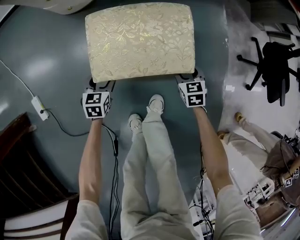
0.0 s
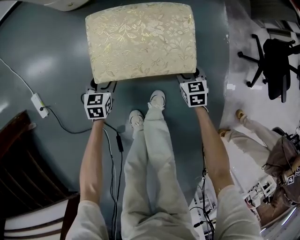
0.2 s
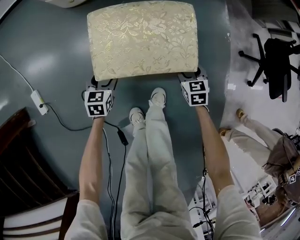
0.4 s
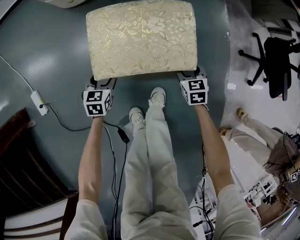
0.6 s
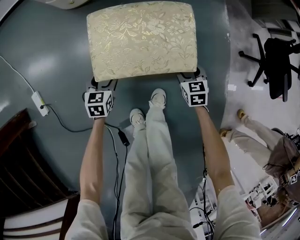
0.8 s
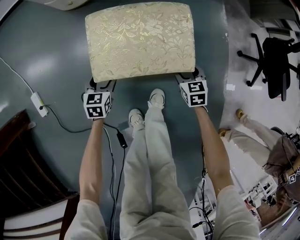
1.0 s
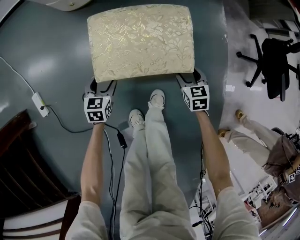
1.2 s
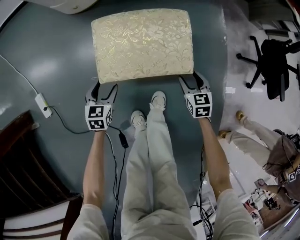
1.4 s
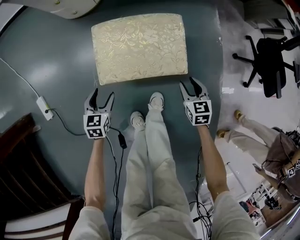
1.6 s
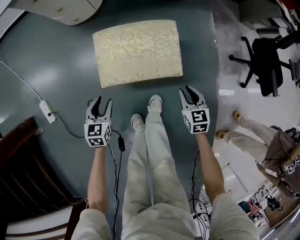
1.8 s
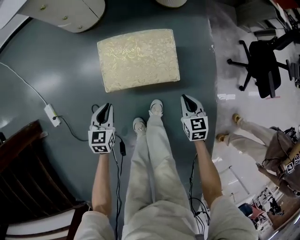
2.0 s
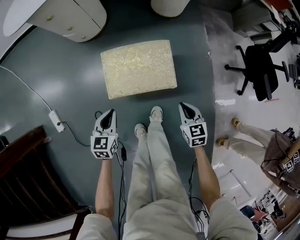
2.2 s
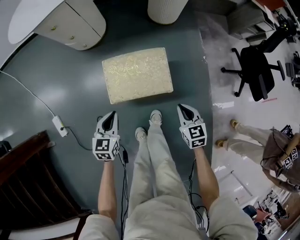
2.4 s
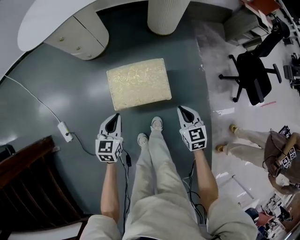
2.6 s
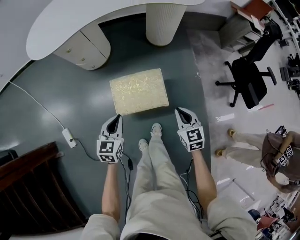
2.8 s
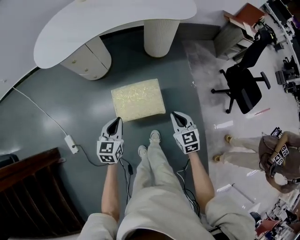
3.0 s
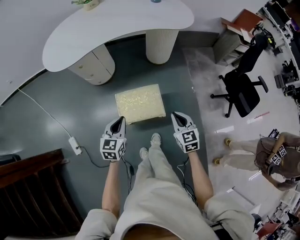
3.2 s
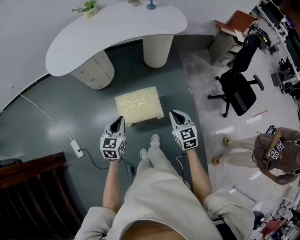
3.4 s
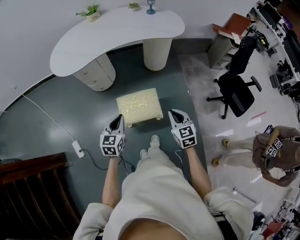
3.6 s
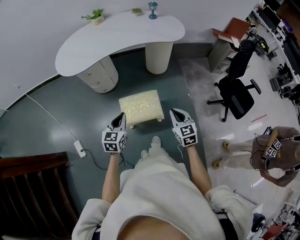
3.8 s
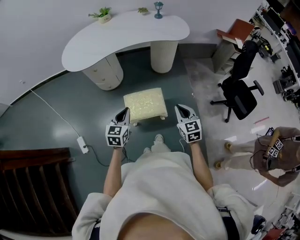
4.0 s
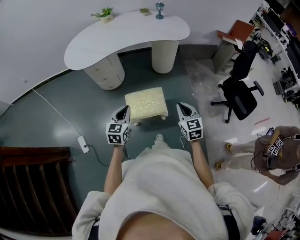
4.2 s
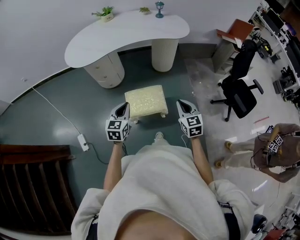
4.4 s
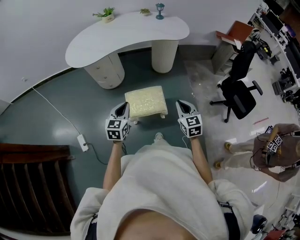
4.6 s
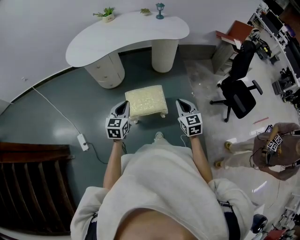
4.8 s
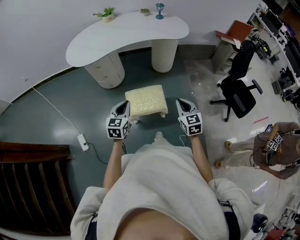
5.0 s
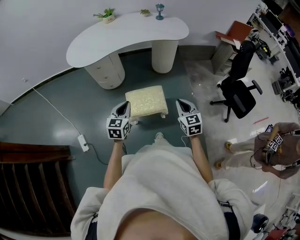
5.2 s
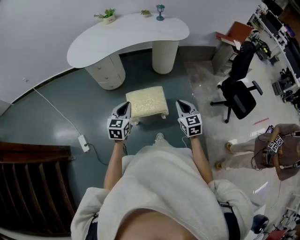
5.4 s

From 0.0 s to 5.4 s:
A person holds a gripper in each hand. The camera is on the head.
From 0.0 s to 1.4 s: The right gripper is displaced upward by some 5 cm; the left gripper changes place by roughly 5 cm.
From 1.4 s to 2.8 s: Both grippers move upward, roughly 40 cm. The right gripper closes its fingers, while the left gripper closes up.
From 2.8 s to 4.0 s: The grippers both shift upward by roughly 25 cm.
From 4.0 s to 5.4 s: The grippers stay close to where they were, moving slightly.

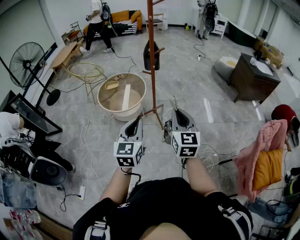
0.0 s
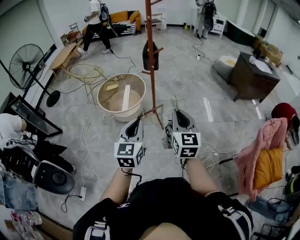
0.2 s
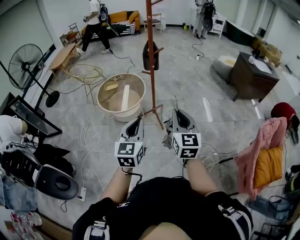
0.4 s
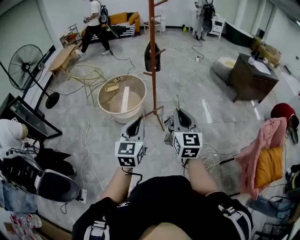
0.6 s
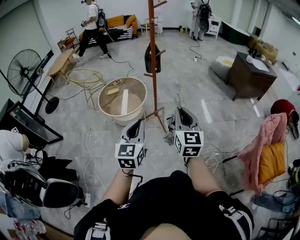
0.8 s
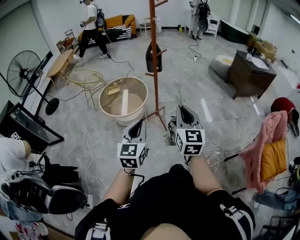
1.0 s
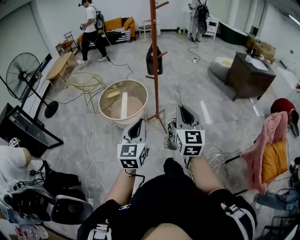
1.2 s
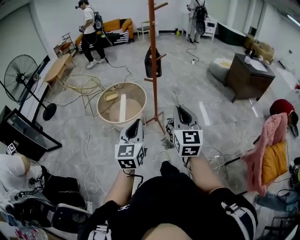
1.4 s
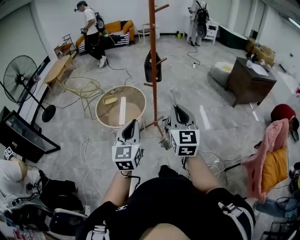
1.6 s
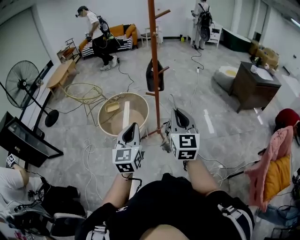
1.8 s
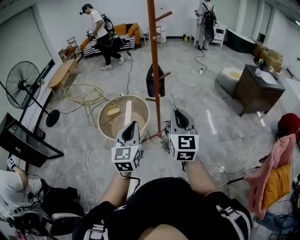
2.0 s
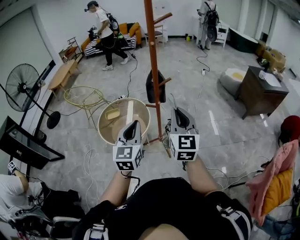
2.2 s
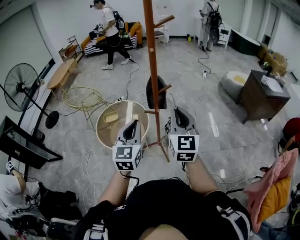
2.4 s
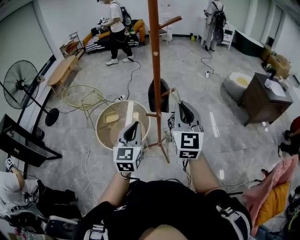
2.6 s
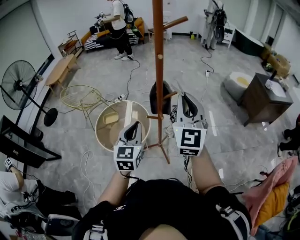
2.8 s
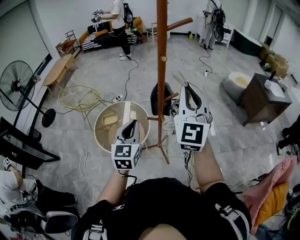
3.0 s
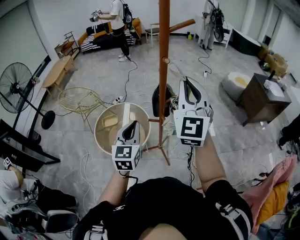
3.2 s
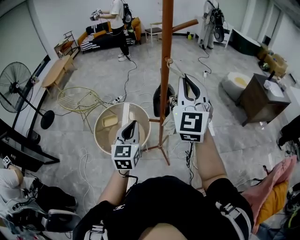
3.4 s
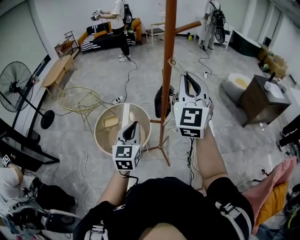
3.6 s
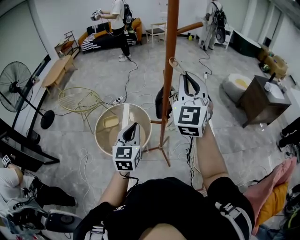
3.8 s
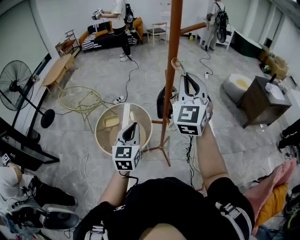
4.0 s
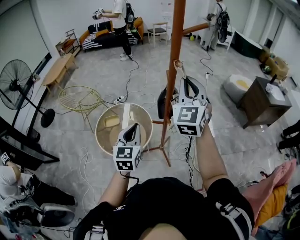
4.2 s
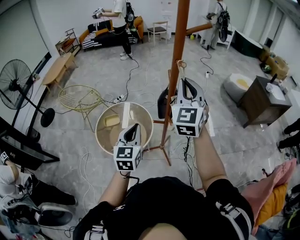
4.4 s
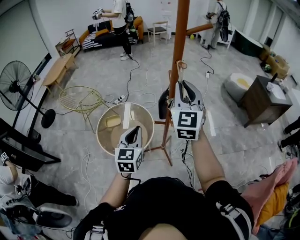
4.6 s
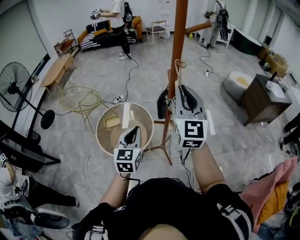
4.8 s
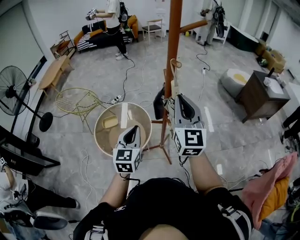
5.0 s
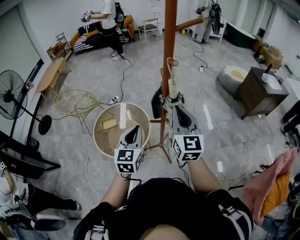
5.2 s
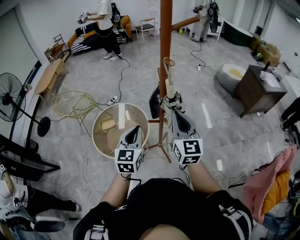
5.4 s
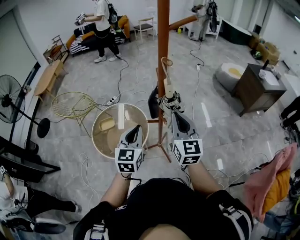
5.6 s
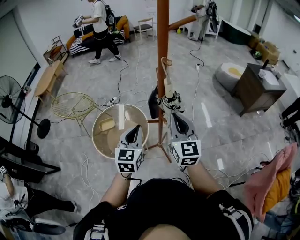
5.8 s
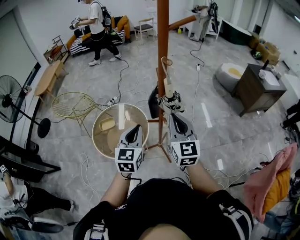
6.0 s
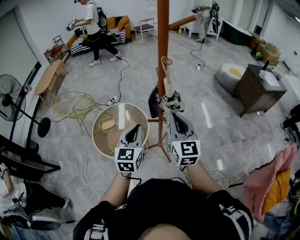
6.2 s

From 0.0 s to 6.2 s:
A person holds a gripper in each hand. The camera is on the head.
From 0.0 s to 1.6 s: Both grippers move to the left and forward, some 15 cm.
From 1.6 s to 3.2 s: The pair of grippers is taken forward, some 50 cm. The right gripper swivels roughly 20 degrees.
From 3.2 s to 4.6 s: The left gripper shifts some 5 cm downward. Meanwhile the right gripper shifts approximately 10 cm downward and forward.
From 4.6 s to 6.2 s: The right gripper is displaced downward and backward by some 10 cm, and changes its angle by roughly 20 degrees.

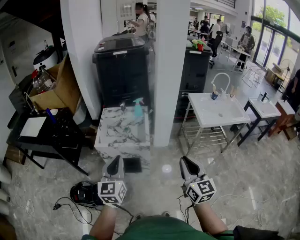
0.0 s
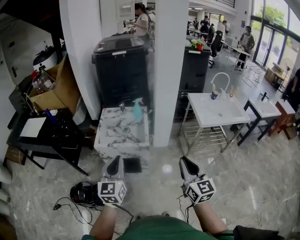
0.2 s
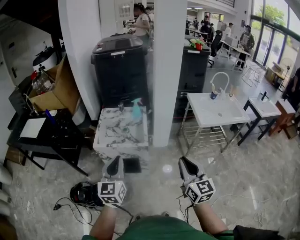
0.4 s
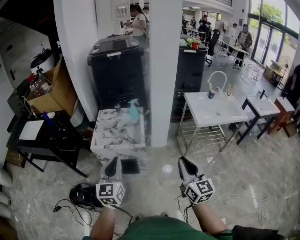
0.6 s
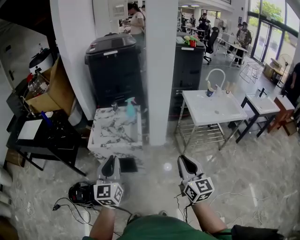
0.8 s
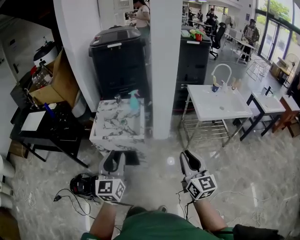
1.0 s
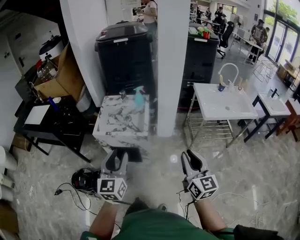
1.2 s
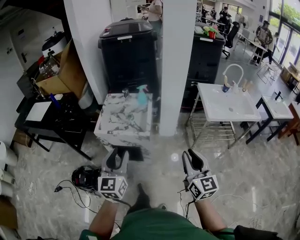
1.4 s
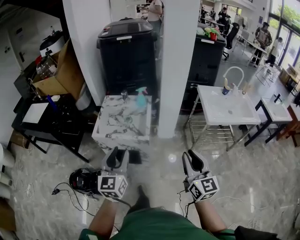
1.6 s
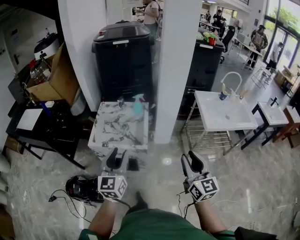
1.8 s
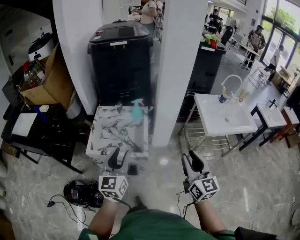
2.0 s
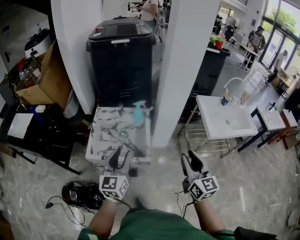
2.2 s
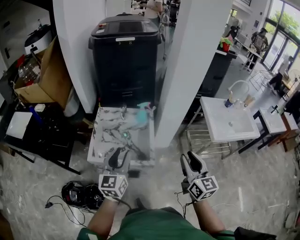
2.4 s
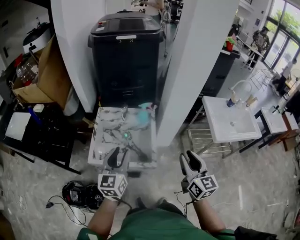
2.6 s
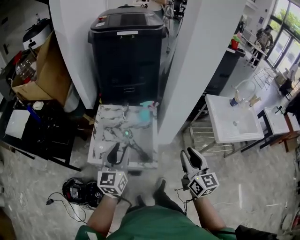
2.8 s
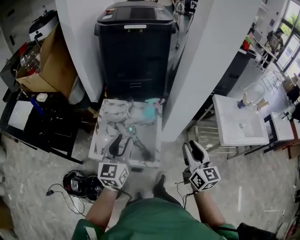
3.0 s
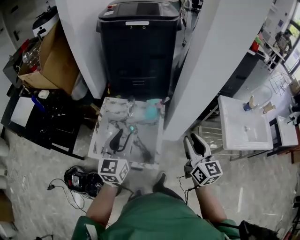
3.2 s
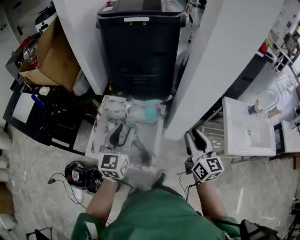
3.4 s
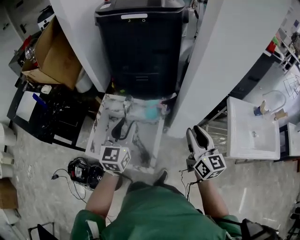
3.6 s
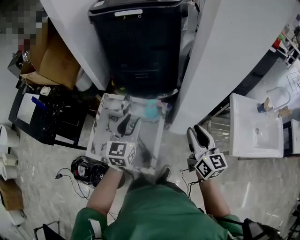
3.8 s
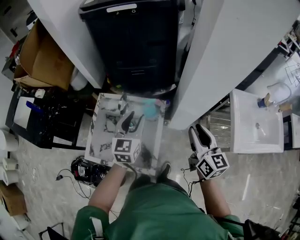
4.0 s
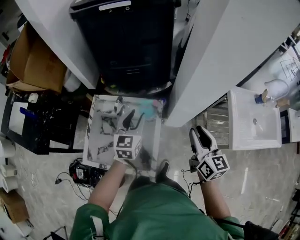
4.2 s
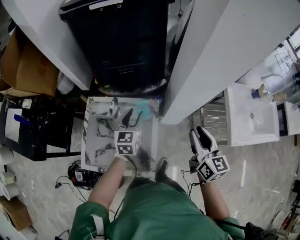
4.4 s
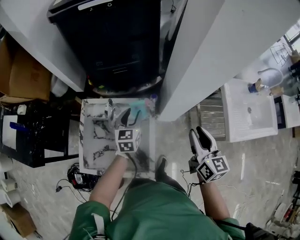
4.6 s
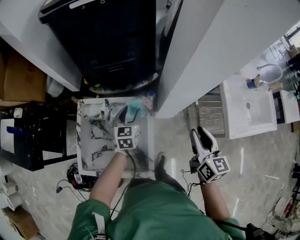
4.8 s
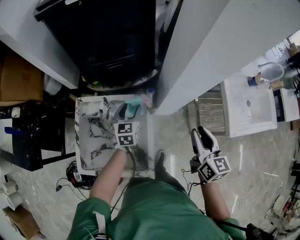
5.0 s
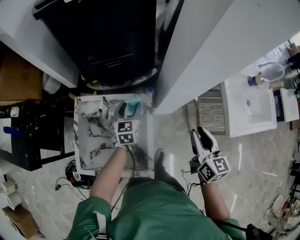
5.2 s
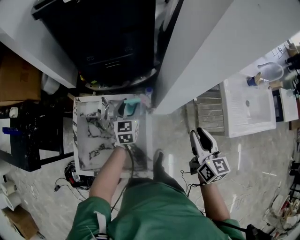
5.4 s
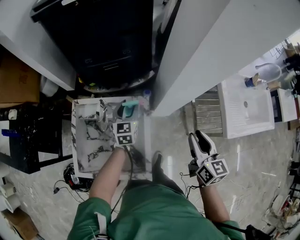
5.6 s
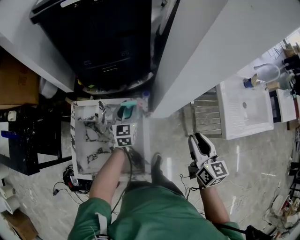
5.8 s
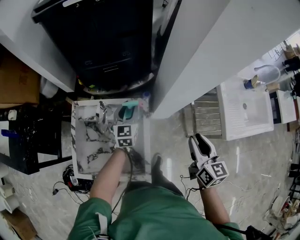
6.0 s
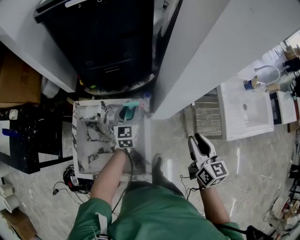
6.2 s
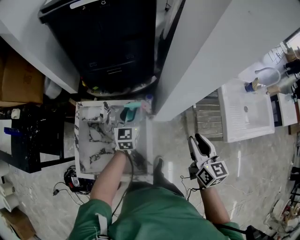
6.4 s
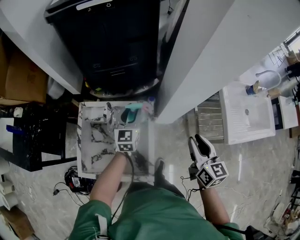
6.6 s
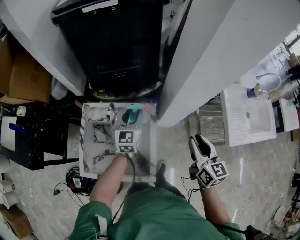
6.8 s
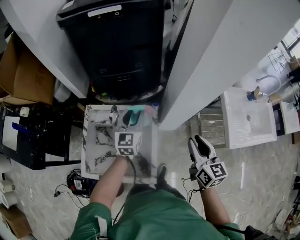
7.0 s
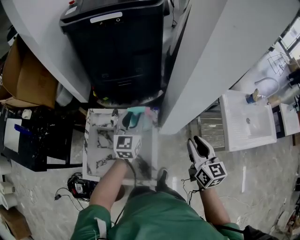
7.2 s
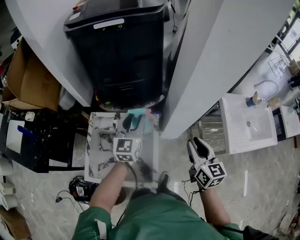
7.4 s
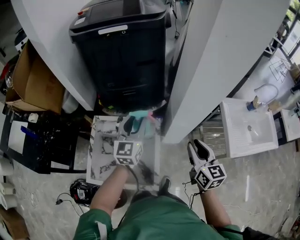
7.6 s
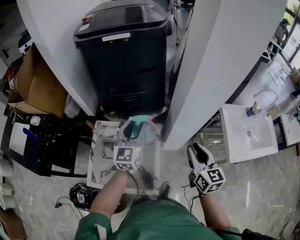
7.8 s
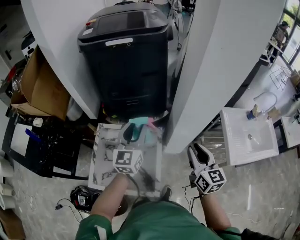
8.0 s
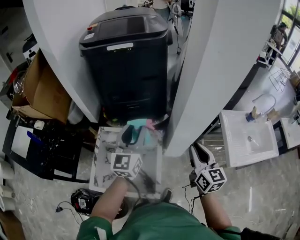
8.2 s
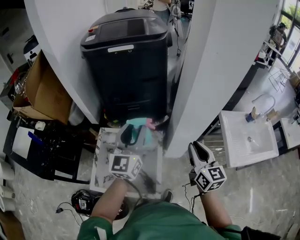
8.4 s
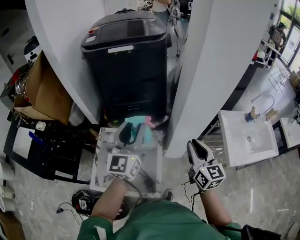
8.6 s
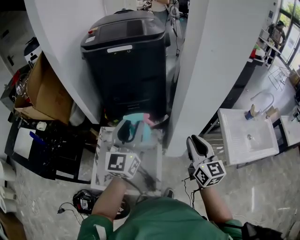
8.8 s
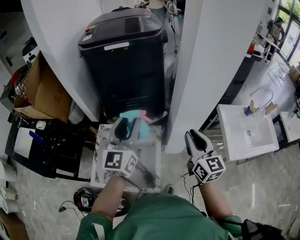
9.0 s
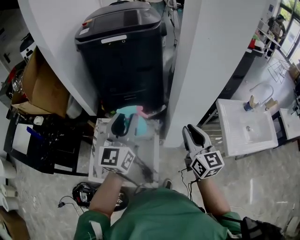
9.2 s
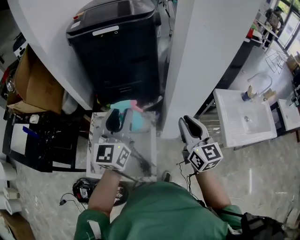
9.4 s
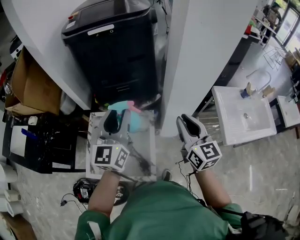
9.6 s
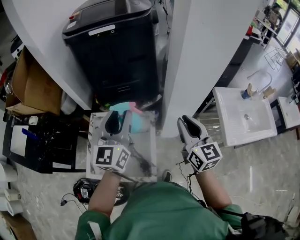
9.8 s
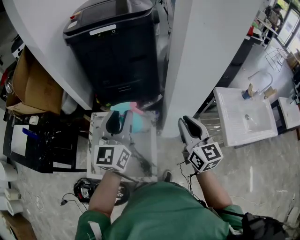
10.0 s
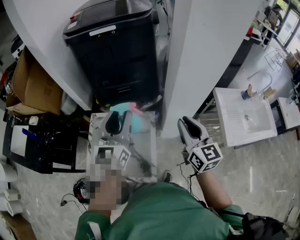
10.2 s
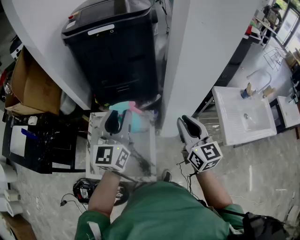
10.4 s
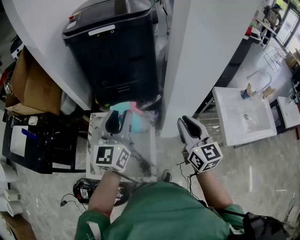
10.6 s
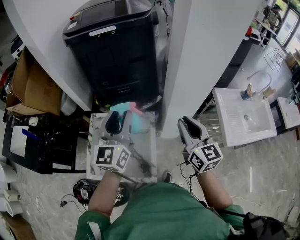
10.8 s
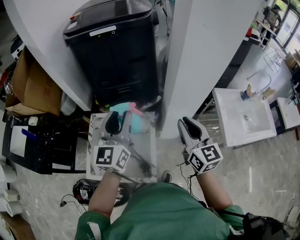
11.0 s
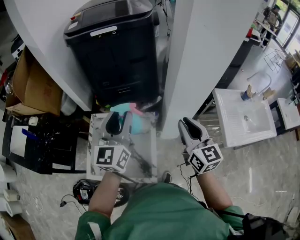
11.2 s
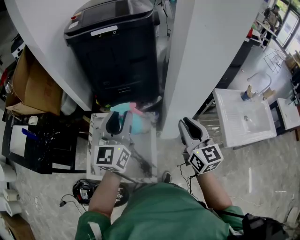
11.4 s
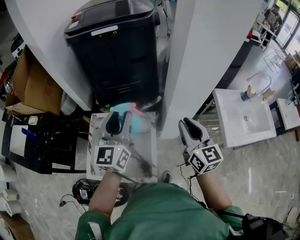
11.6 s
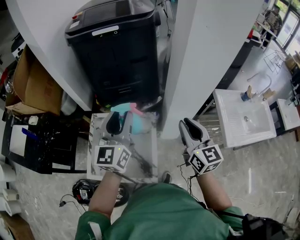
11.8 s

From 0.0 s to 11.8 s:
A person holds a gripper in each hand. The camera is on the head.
From 0.0 s to 1.4 s: Both grippers travel together to the right, roughly 5 cm. The left gripper opens.
From 1.4 s to 3.0 s: Both grippers travel together forward, some 35 cm.
From 3.0 s to 4.4 s: The left gripper travels forward, downward and to the right by approximately 35 cm. The right gripper shifts about 20 cm forward and to the right.
From 4.4 s to 6.0 s: The left gripper travels forward and downward by roughly 10 cm; the right gripper shifts by roughly 5 cm.
From 6.0 s to 7.4 s: The right gripper goes some 5 cm upward, while the left gripper travels upward by roughly 15 cm.
From 7.4 s to 8.8 s: The right gripper goes some 10 cm upward, while the left gripper travels upward and backward by roughly 20 cm.
From 8.8 s to 10.4 s: The grippers move only a little.
From 10.4 s to 11.8 s: Neither gripper changes place.
